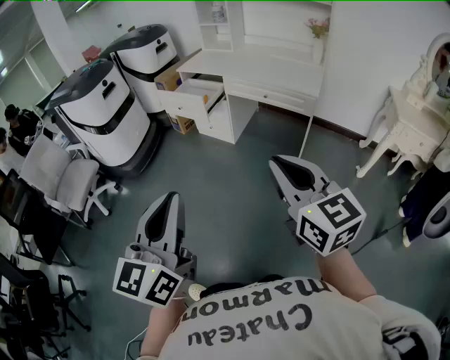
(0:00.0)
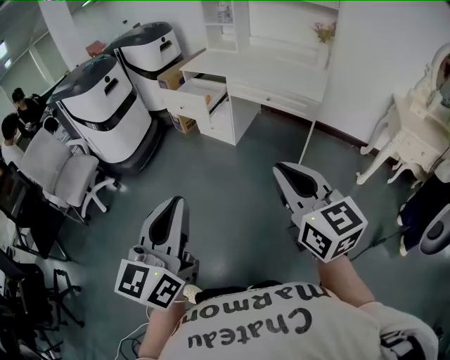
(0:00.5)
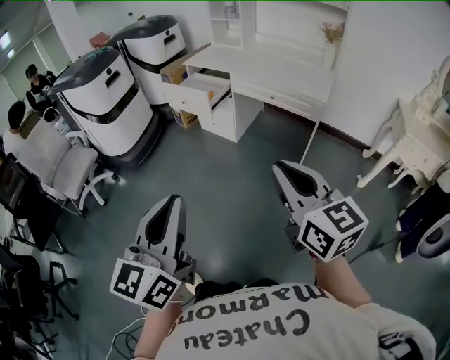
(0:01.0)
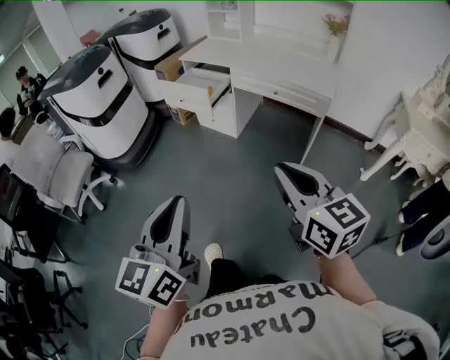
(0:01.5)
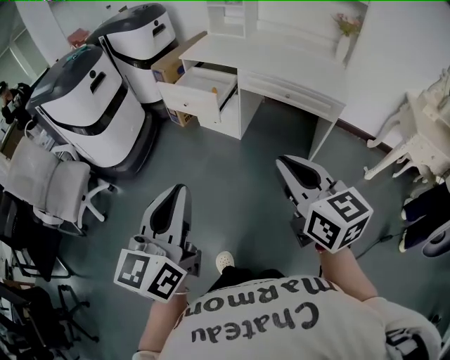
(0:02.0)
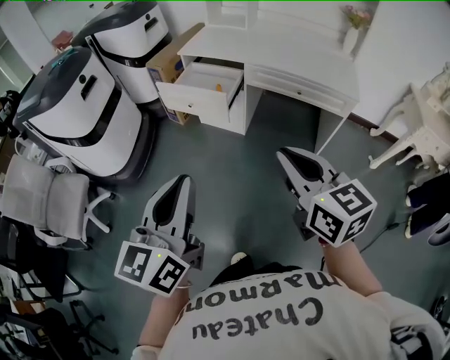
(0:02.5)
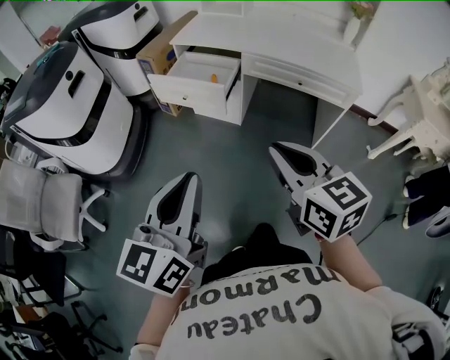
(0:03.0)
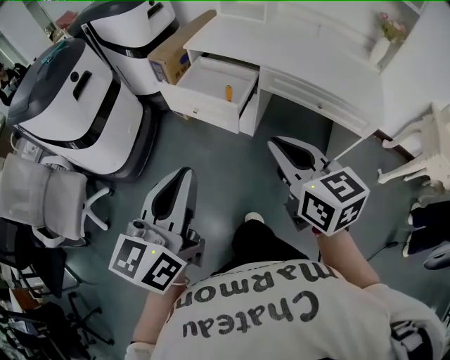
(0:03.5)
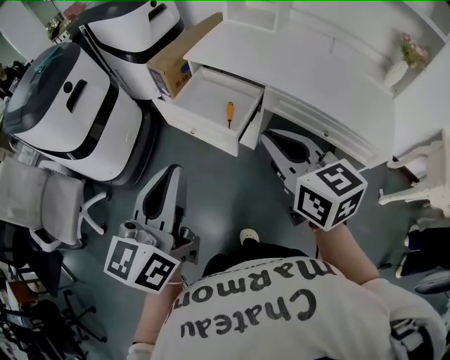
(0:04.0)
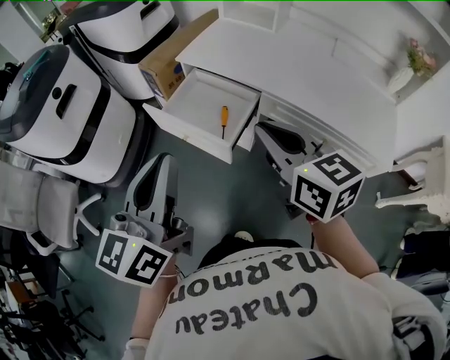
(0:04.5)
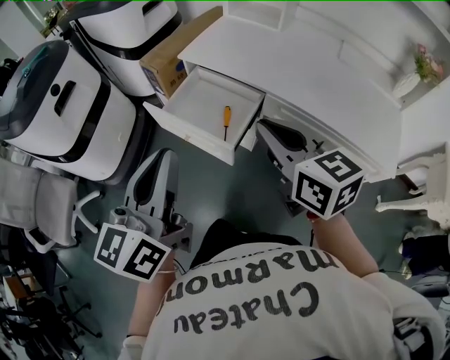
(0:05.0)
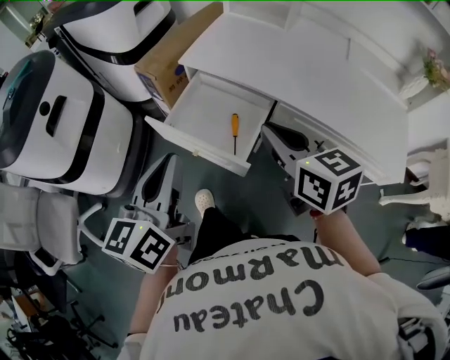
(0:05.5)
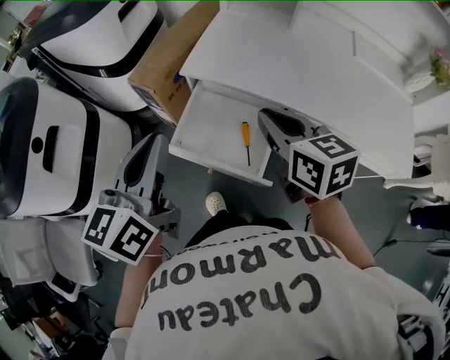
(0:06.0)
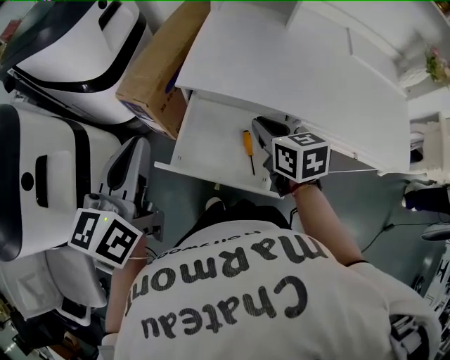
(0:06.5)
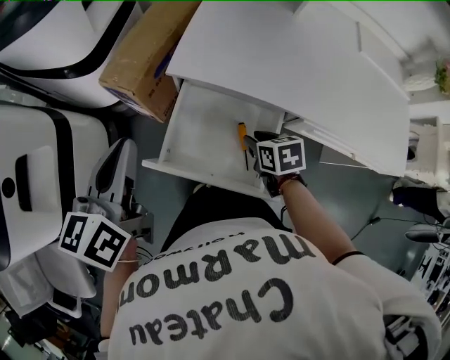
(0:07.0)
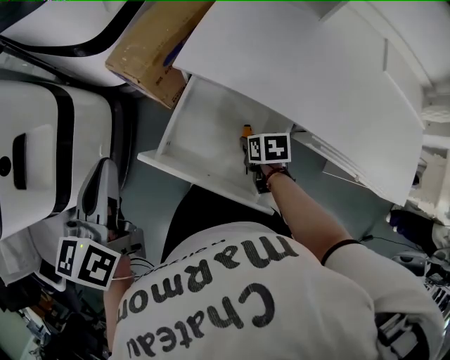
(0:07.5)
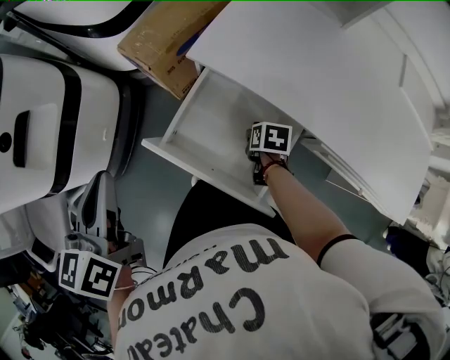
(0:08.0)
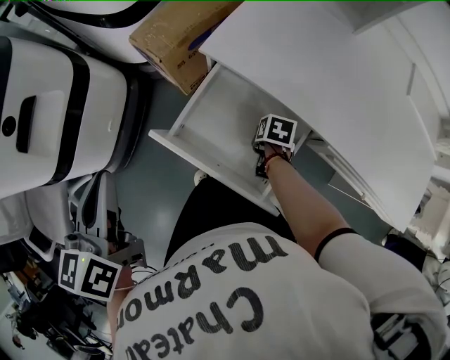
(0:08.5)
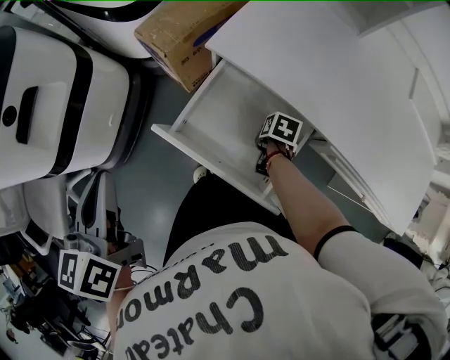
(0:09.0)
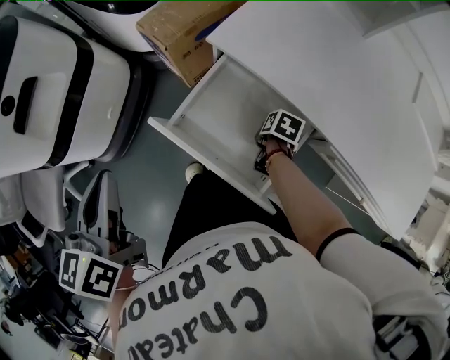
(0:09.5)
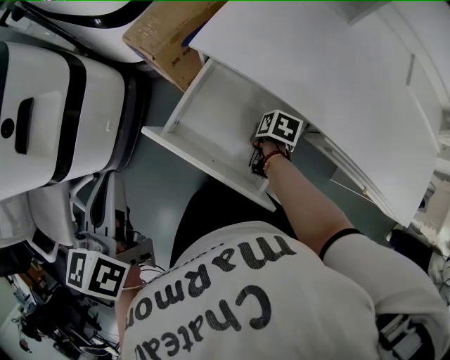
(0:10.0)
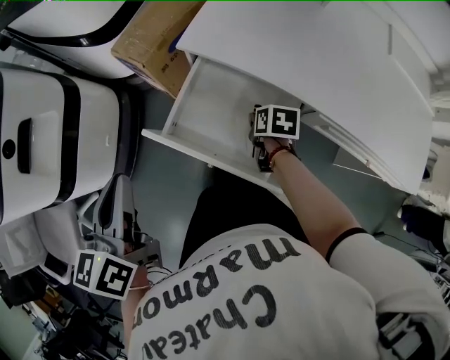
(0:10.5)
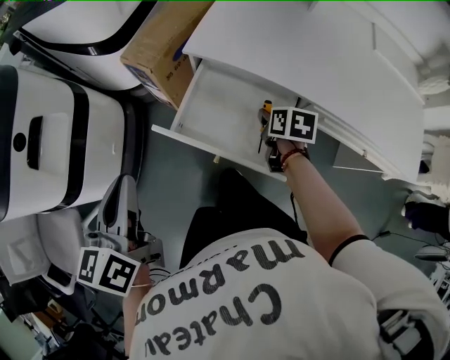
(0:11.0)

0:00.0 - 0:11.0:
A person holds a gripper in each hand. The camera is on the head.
0:00.0 - 0:02.0: The grippers both shift forward and to the left by approximately 25 cm.
0:02.0 - 0:03.5: Both grippers travel together forward, approximately 25 cm.
0:03.5 - 0:05.5: Both grippers travel together forward, some 30 cm.
0:05.5 - 0:07.5: The right gripper is displaced downward and forward by some 40 cm, tilts its fingers some 40 degrees downward, and opens up. Meanwhile the left gripper goes about 25 cm forward and to the left.
0:07.5 - 0:09.0: The left gripper ends up some 10 cm from where it was, while the right gripper shifts approximately 5 cm downward.
0:09.0 - 0:11.0: The right gripper moves upward, roughly 15 cm, and changes its angle by about 20 degrees.

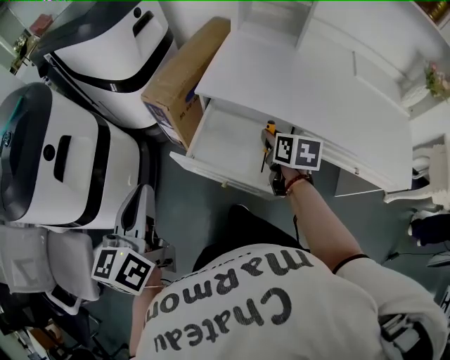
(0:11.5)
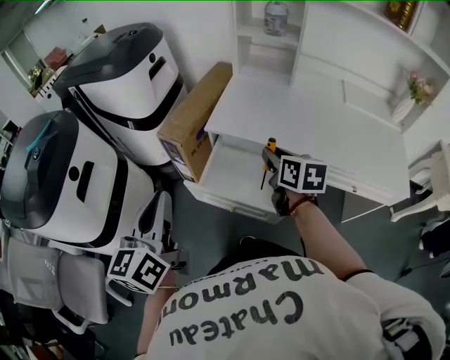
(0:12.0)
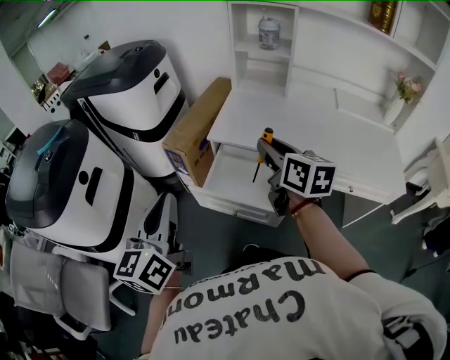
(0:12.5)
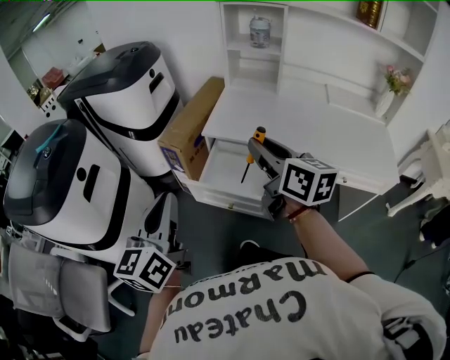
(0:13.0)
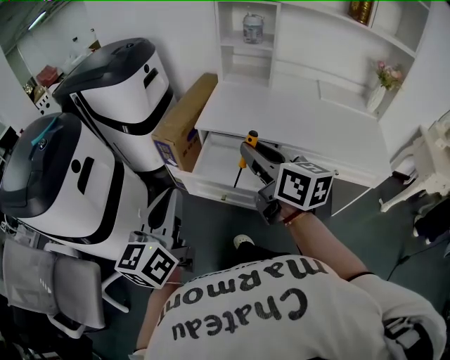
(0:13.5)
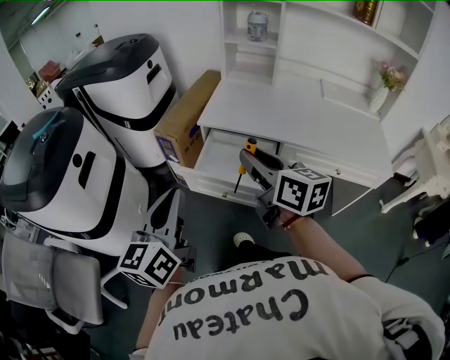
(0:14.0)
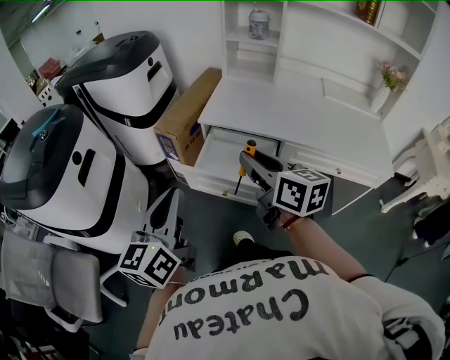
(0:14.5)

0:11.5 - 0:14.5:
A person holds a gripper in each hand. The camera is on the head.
0:11.5 - 0:13.0: The left gripper moves upward and backward, approximately 10 cm, while the right gripper goes some 30 cm upward and backward, and angles its fingers upward, by approximately 40 degrees.
0:13.0 - 0:14.5: The right gripper moves backward, some 5 cm.

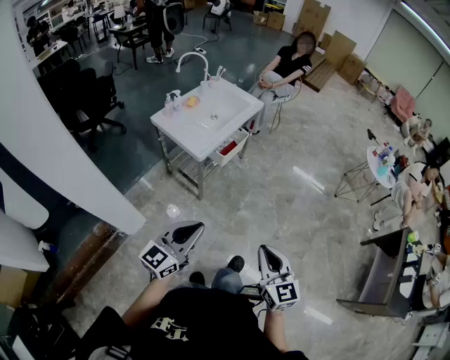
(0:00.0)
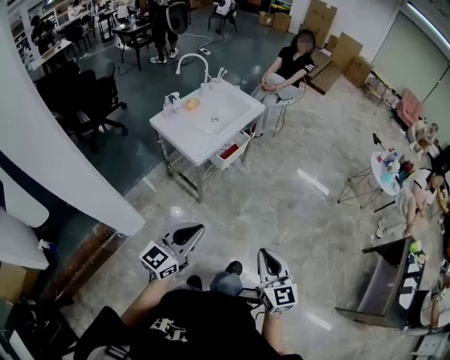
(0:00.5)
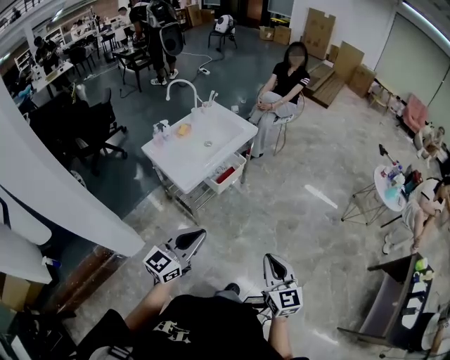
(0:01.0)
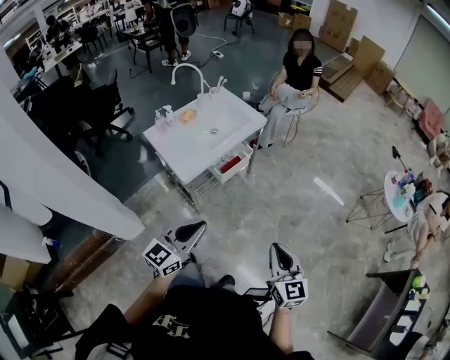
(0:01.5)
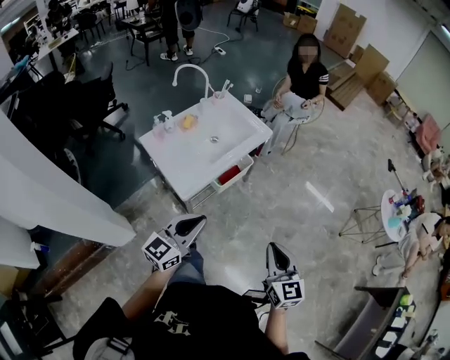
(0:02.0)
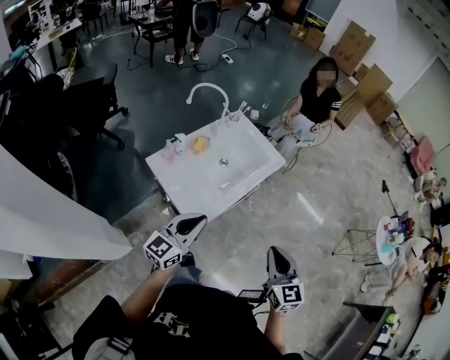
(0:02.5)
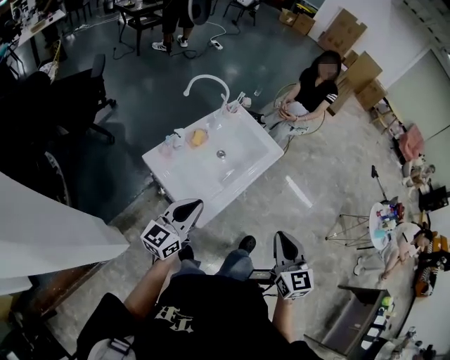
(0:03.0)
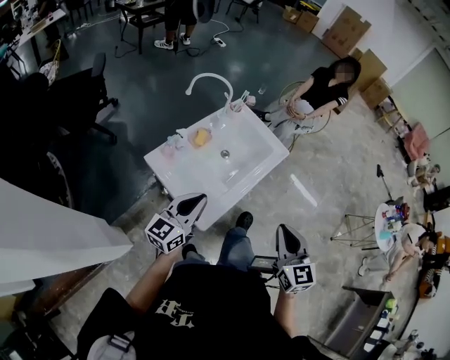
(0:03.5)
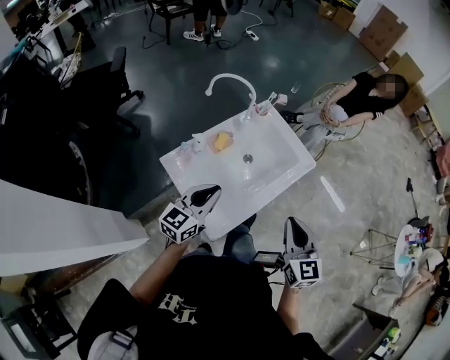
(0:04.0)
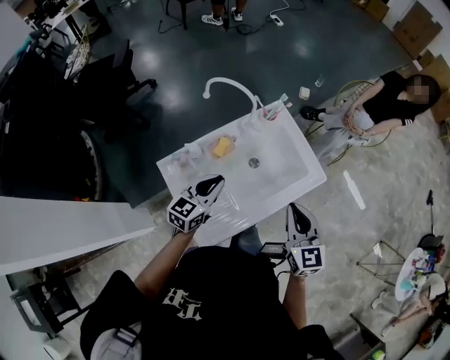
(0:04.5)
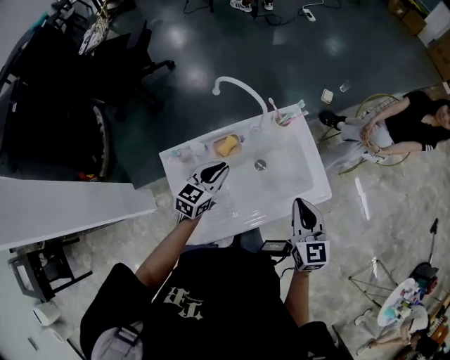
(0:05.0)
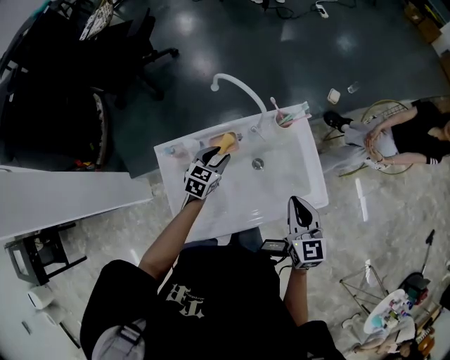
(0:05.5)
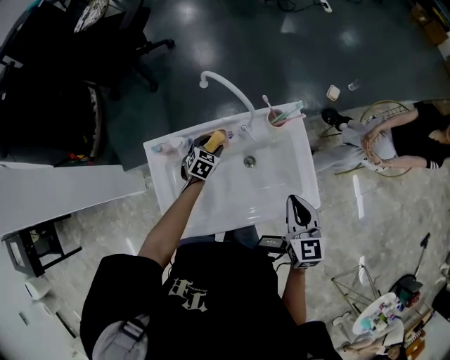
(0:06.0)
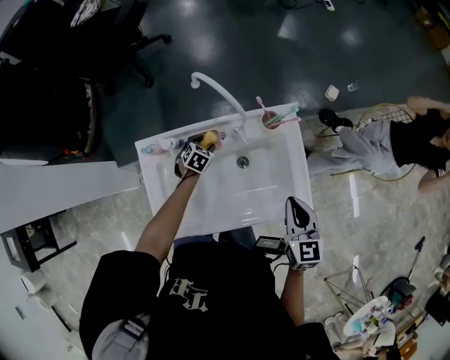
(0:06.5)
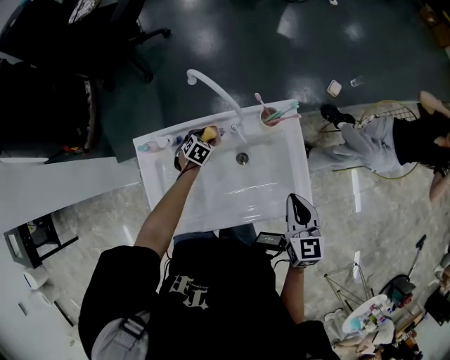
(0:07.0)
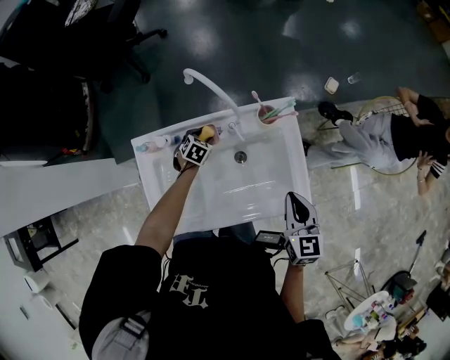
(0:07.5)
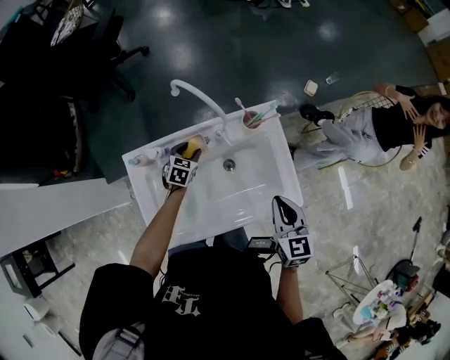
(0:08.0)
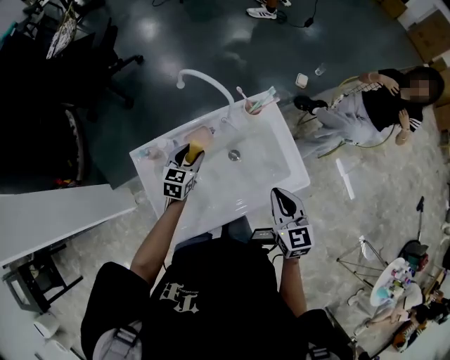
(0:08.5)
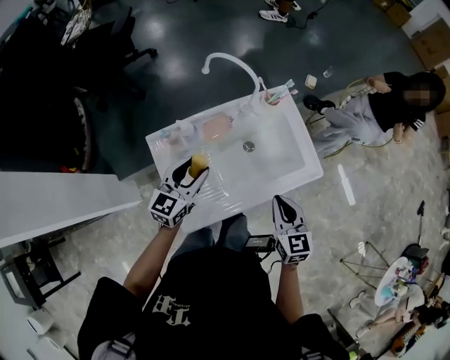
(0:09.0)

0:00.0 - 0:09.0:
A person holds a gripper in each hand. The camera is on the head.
0:00.0 - 0:02.0: Both grippers move forward, approximately 35 cm.
0:02.0 - 0:04.5: The pair of grippers is taken forward and to the left, some 50 cm. The left gripper rotates some 20 degrees.
0:04.5 - 0:07.0: The right gripper moves forward, downward and to the right, approximately 25 cm, and turns by roughly 20 degrees, while the left gripper is displaced downward and forward by approximately 35 cm, points its fingers roughly 50 degrees further downward, and opens its fingers.
0:07.0 - 0:09.0: The left gripper goes about 35 cm upward and backward, and angles its fingers upward, by approximately 50 degrees; the right gripper heads backward and to the left, covering roughly 20 cm.

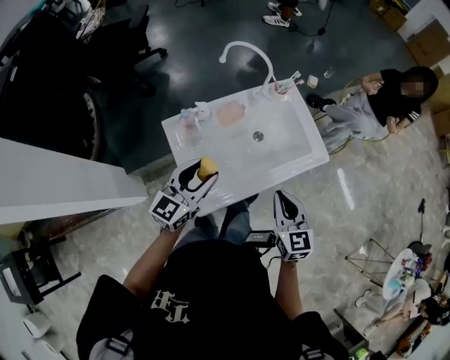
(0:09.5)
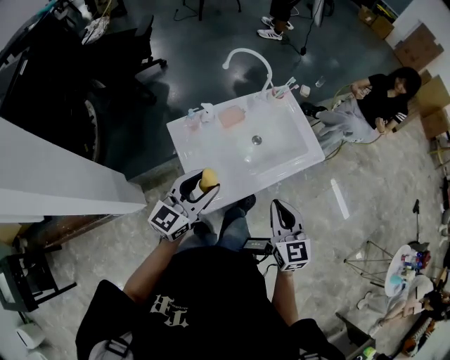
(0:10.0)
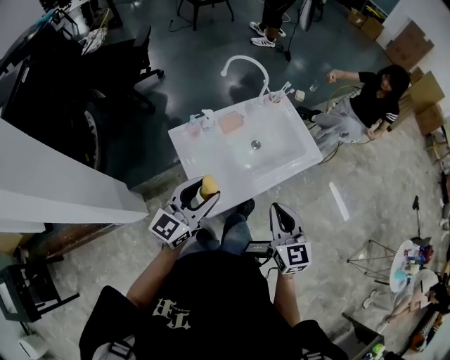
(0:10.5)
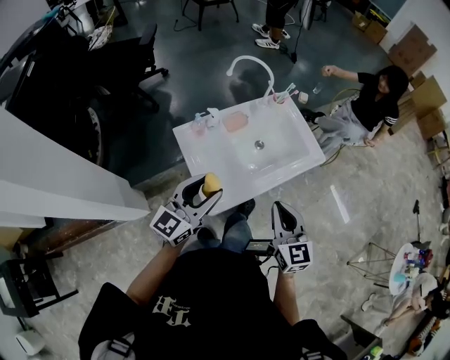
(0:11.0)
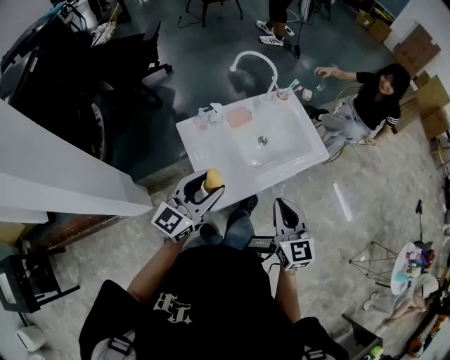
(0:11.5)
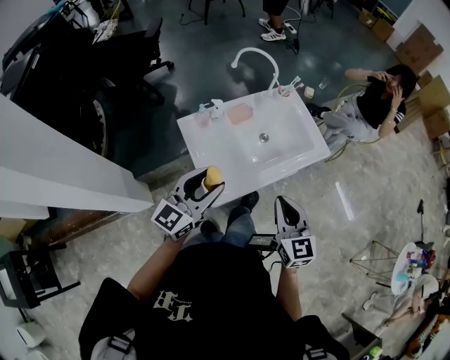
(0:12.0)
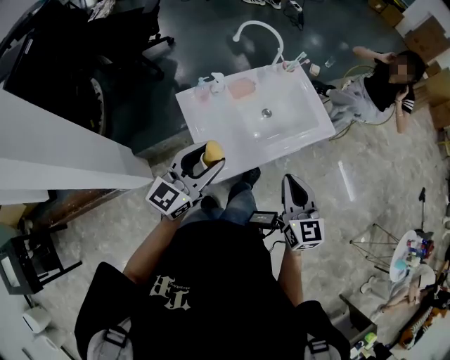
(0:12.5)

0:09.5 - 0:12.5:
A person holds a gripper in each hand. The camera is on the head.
0:09.5 - 0:11.0: Both grippers travel together backward and upward, some 15 cm.
0:11.0 - 0:12.5: The grippers stay close to where they were, moving slightly.
